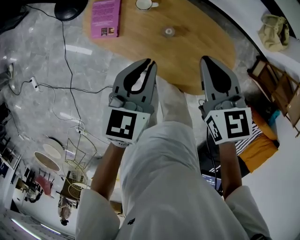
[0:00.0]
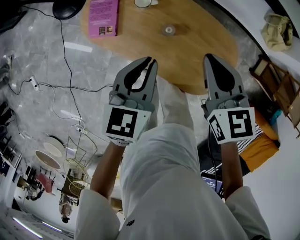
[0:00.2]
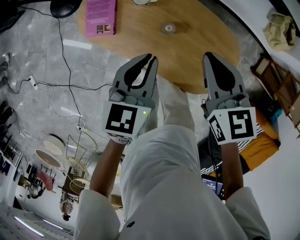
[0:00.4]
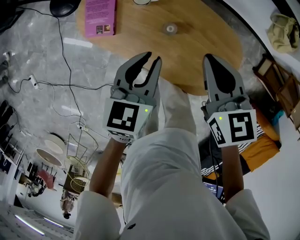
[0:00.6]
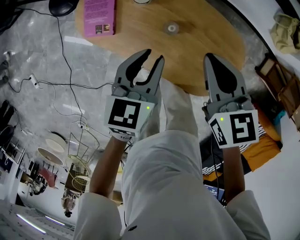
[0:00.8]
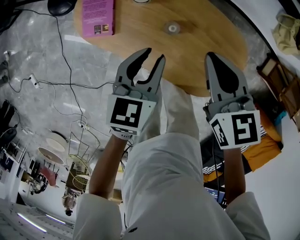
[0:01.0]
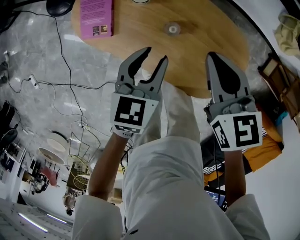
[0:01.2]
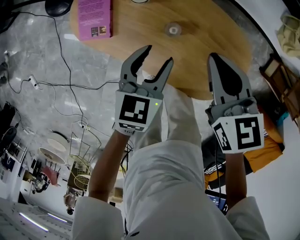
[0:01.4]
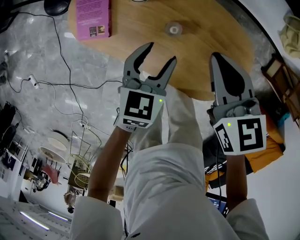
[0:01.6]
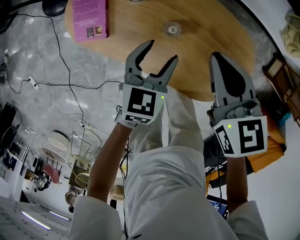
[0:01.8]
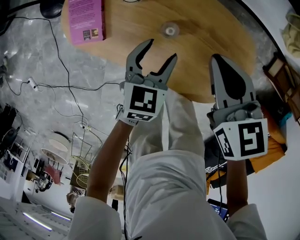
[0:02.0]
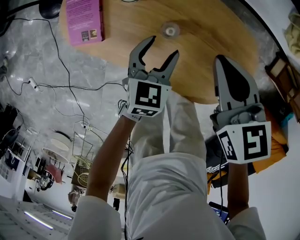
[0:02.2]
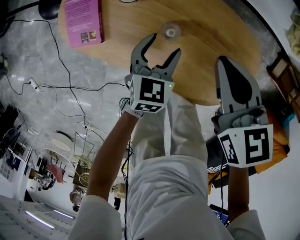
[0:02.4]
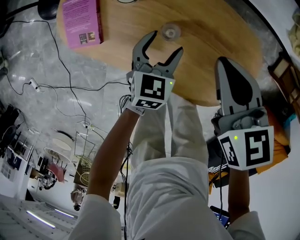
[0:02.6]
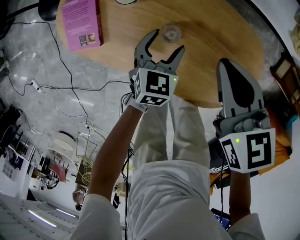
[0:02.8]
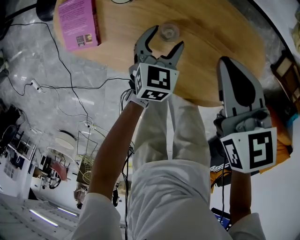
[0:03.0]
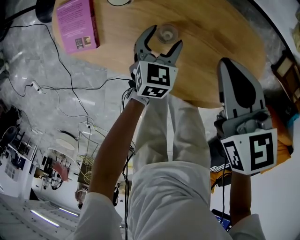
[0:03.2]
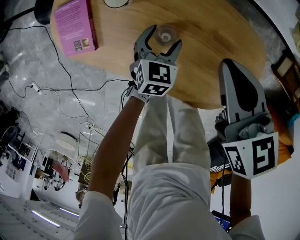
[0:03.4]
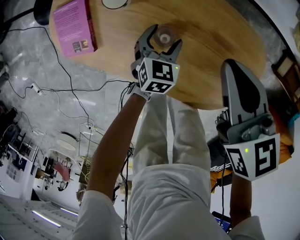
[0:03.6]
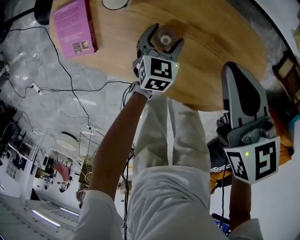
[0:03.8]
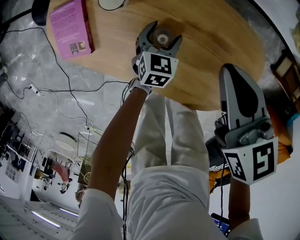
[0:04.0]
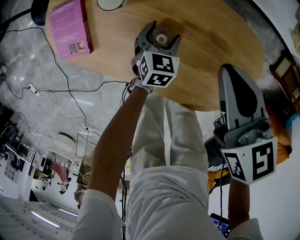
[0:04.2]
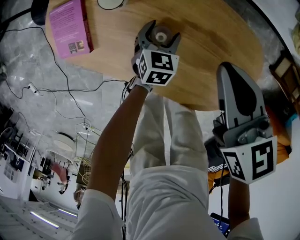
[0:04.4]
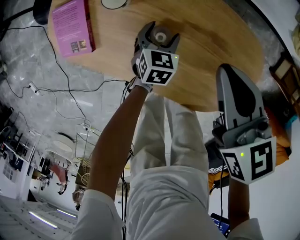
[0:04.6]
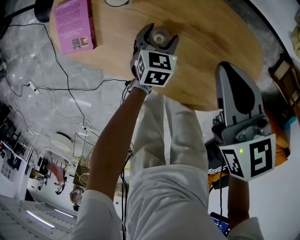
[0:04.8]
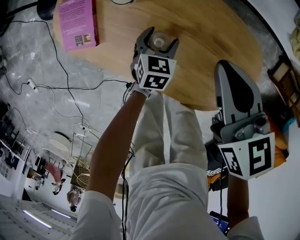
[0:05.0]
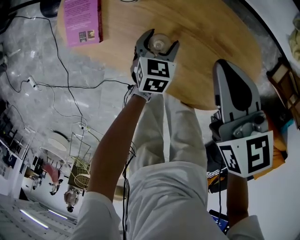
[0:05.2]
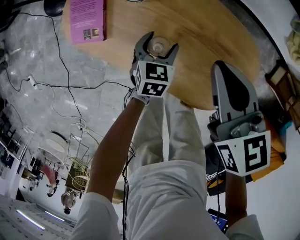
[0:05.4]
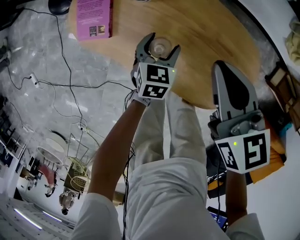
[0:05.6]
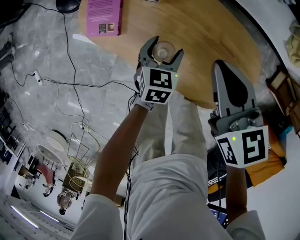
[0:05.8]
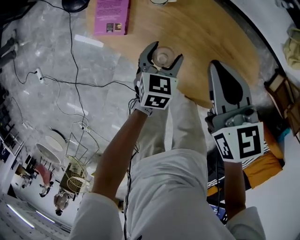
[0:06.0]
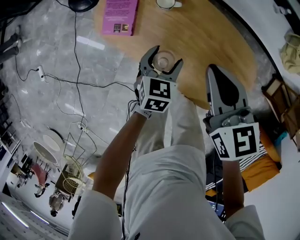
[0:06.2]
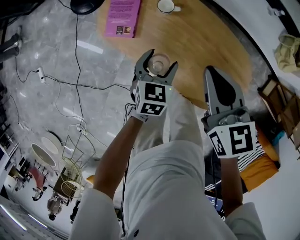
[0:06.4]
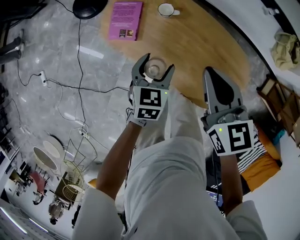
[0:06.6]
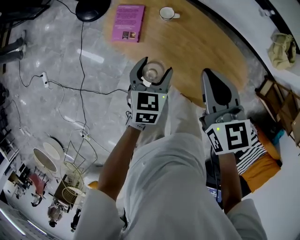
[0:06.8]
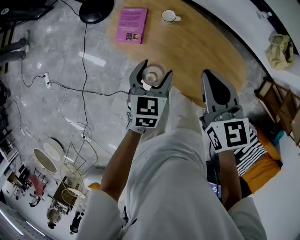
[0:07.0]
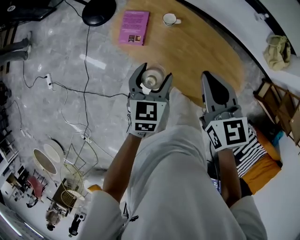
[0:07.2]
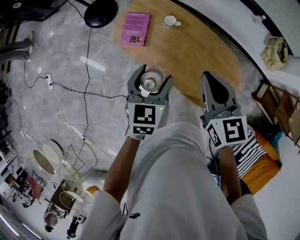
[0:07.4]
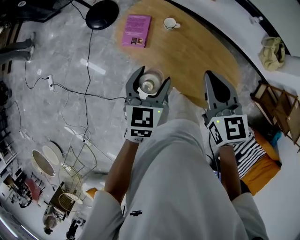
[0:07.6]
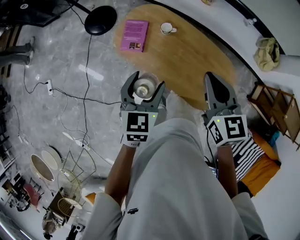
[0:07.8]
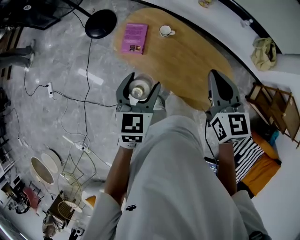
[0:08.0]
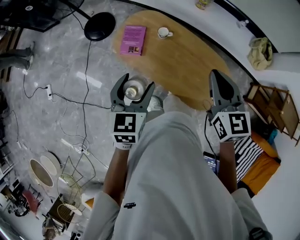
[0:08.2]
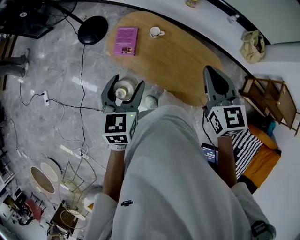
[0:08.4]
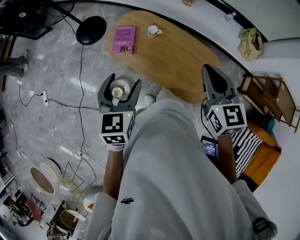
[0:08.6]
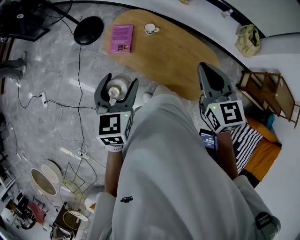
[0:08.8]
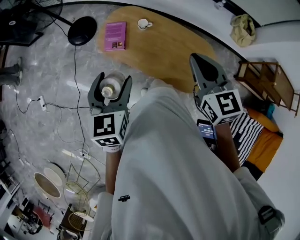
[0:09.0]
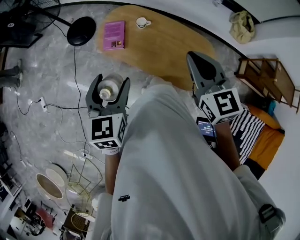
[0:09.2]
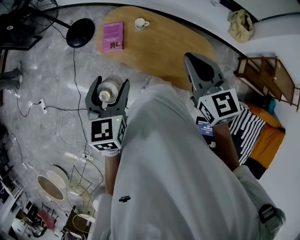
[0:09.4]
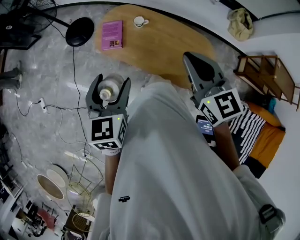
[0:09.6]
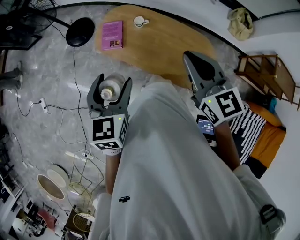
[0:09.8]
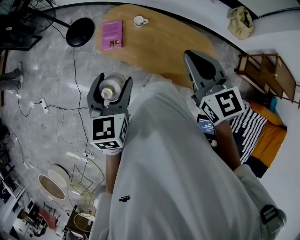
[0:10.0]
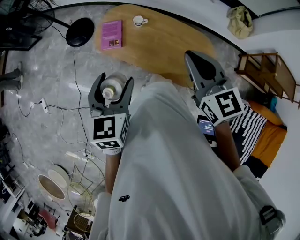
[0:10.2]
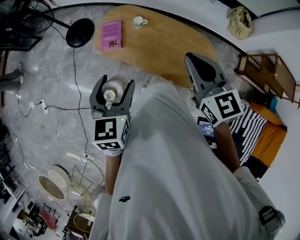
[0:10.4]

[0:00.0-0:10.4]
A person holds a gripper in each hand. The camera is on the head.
0:00.0 to 0:01.4: The right gripper moves downward, some 10 cm. Meanwhile the left gripper moves downward, roughly 15 cm, and opens up.
0:01.4 to 0:03.0: The left gripper goes approximately 15 cm downward. The right gripper goes approximately 5 cm downward.
0:03.0 to 0:04.4: The left gripper goes roughly 10 cm downward.
0:04.4 to 0:06.0: The grippers both shift upward, to the left and backward by approximately 15 cm.
0:06.0 to 0:07.4: The left gripper goes approximately 25 cm upward. Meanwhile the right gripper shifts about 15 cm upward and backward.
0:07.4 to 0:09.0: The right gripper goes roughly 10 cm upward and backward, while the left gripper moves upward, backward and to the left, some 20 cm.
0:09.0 to 0:10.4: The grippers move only a little.

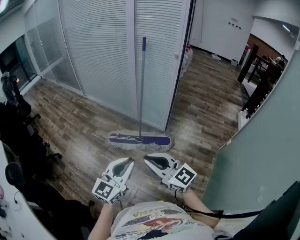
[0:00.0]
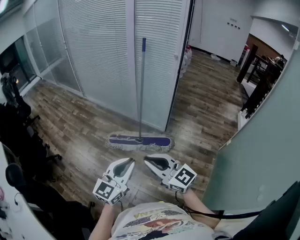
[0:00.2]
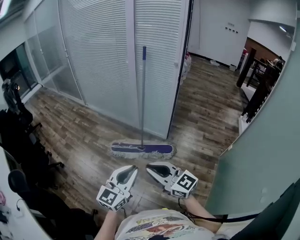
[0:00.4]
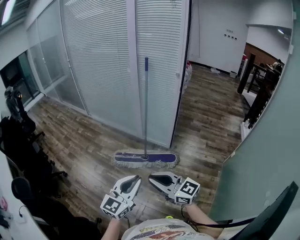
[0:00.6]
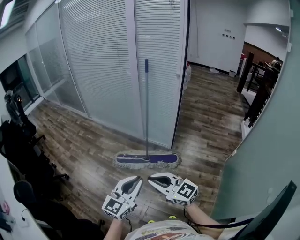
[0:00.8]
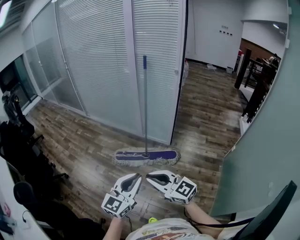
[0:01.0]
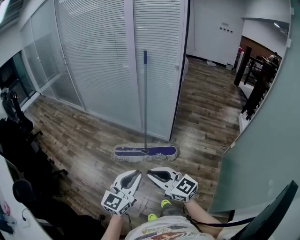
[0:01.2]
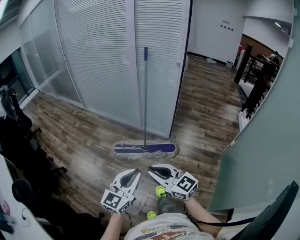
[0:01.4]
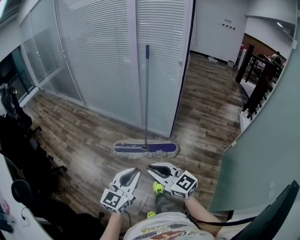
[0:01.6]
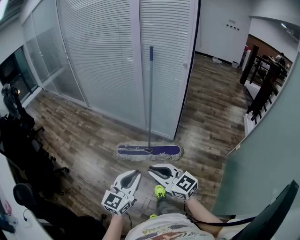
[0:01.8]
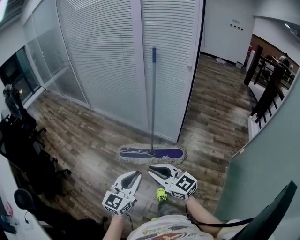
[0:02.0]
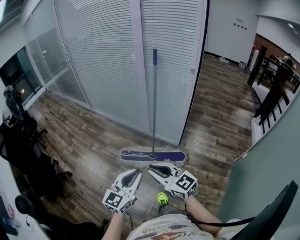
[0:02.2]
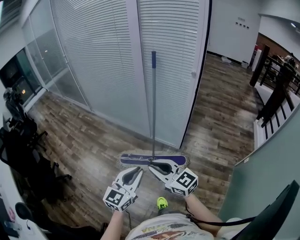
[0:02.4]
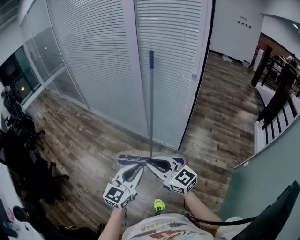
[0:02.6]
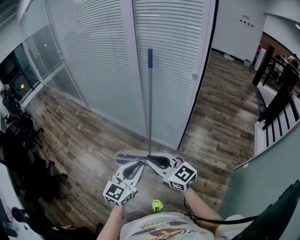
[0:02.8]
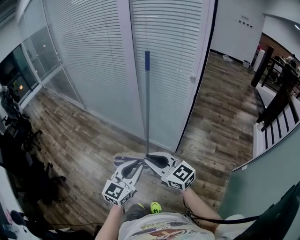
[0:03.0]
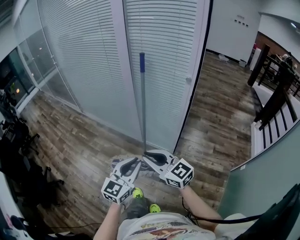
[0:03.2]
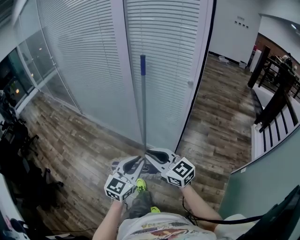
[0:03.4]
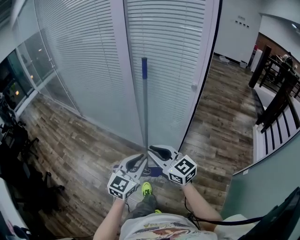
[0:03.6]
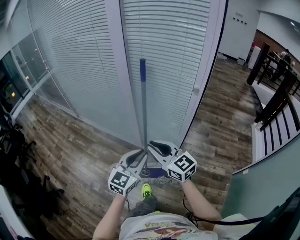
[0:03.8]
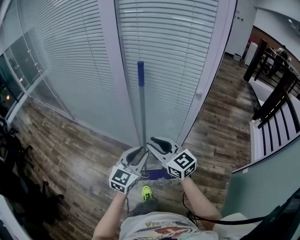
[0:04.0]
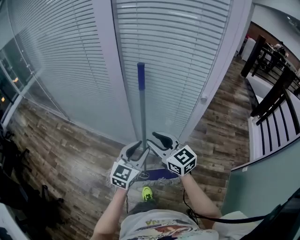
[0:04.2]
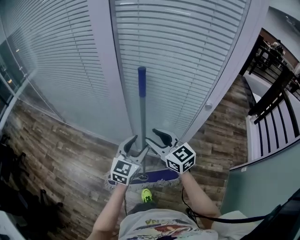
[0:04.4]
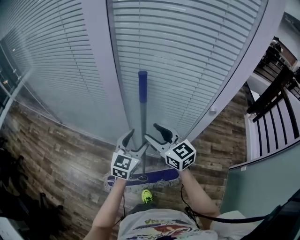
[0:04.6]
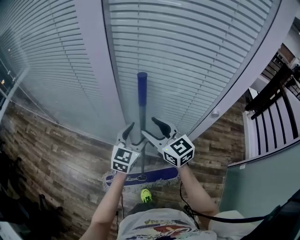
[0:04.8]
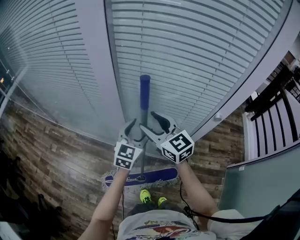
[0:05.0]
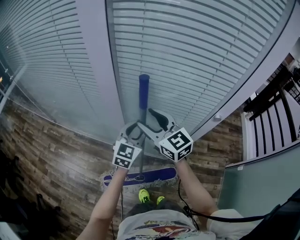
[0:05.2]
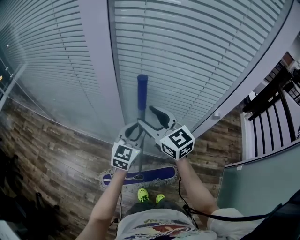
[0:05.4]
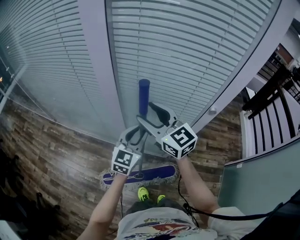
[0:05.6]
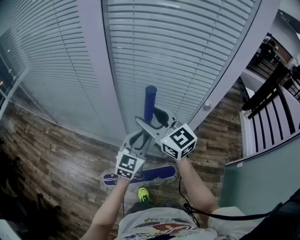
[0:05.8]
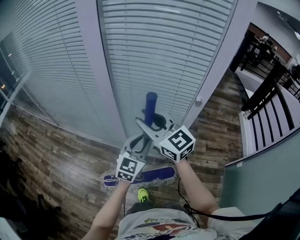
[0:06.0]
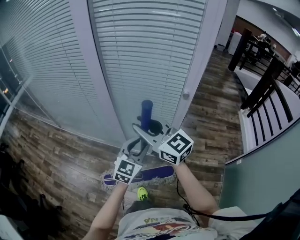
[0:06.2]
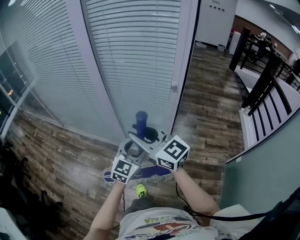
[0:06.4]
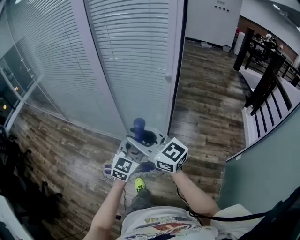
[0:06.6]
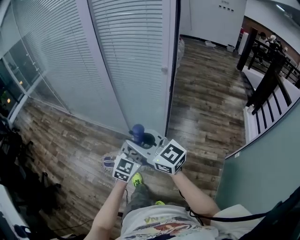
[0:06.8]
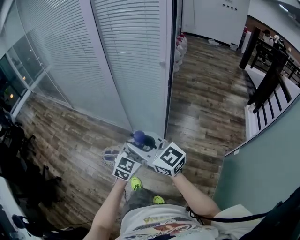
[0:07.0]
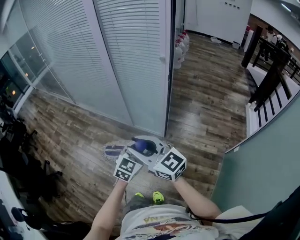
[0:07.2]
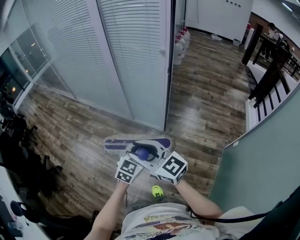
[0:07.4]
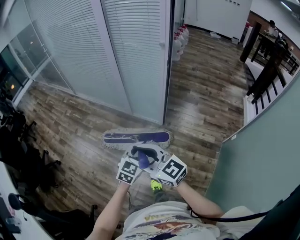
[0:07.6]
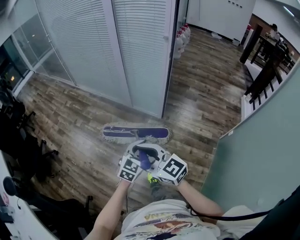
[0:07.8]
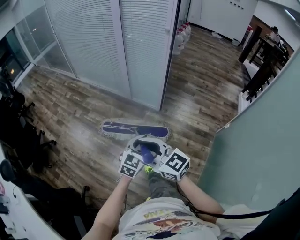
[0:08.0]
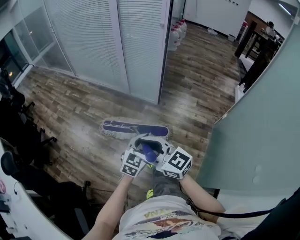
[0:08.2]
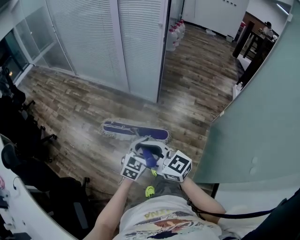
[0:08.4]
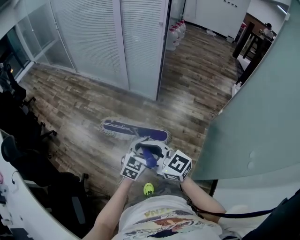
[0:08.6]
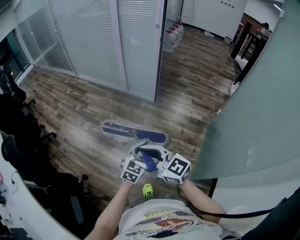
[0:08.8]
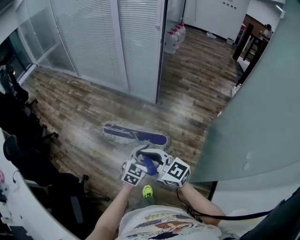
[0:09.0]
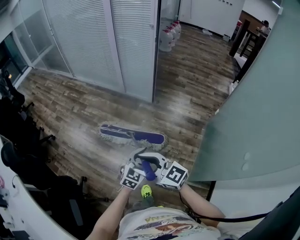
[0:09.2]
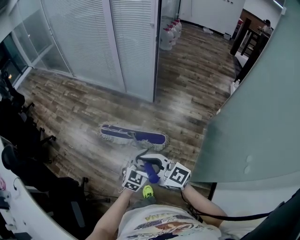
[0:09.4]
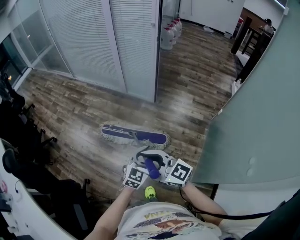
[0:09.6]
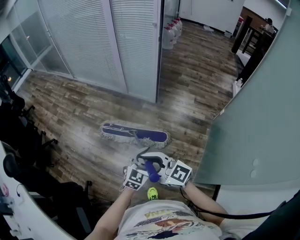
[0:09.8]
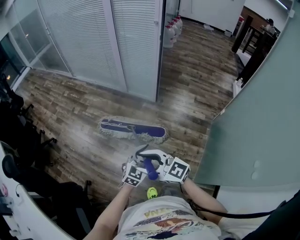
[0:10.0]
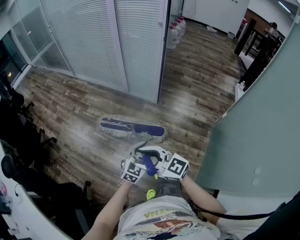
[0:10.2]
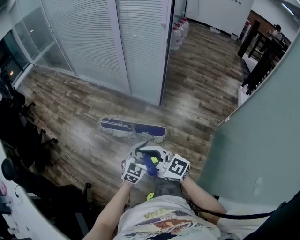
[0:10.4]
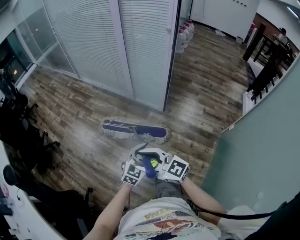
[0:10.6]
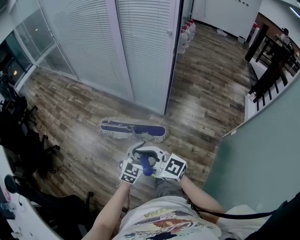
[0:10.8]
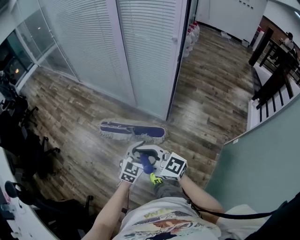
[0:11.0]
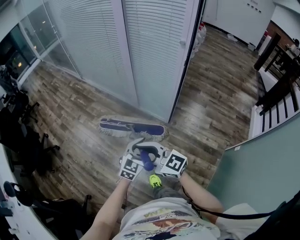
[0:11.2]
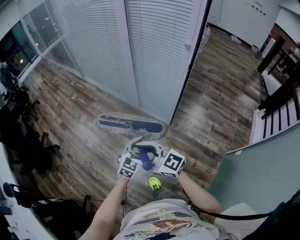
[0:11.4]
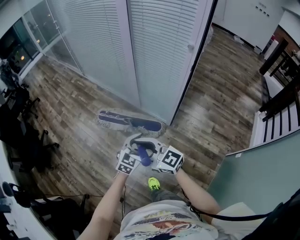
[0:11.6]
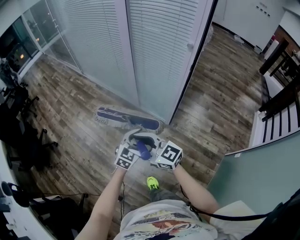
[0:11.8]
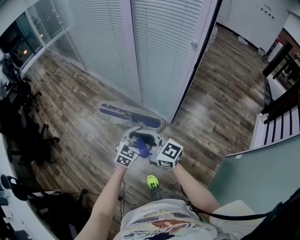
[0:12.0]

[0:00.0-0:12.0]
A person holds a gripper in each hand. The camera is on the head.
0:00.0 to 0:01.6: Both grippers move to the left, roughly 5 cm.
0:01.6 to 0:03.0: The left gripper is displaced forward and to the right by roughly 40 cm. The right gripper travels forward by some 40 cm.
0:03.0 to 0:04.4: The two grippers travel together, forward, some 40 cm. The left gripper opens up. The right gripper changes its angle by roughly 20 degrees, and opens its fingers.
0:04.4 to 0:06.0: The left gripper goes roughly 5 cm to the right, moves about 15 cm forward and comes back, and closes up; the right gripper moves upward, approximately 10 cm, and travels forward and back again, some 15 cm each way.
0:06.0 to 0:07.6: Both grippers are carried backward, approximately 60 cm. The left gripper opens, then closes once more. Meanwhile the right gripper turns by approximately 20 degrees.
0:07.6 to 0:09.0: The two grippers travel together, backward, about 40 cm.
0:09.0 to 0:10.4: Both grippers travel together forward, about 20 cm.
0:10.4 to 0:12.0: The two grippers travel together, forward, about 40 cm.

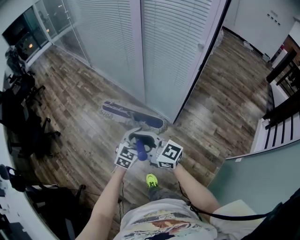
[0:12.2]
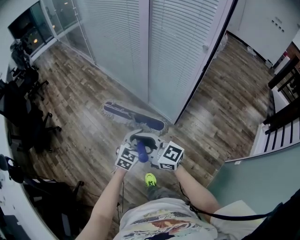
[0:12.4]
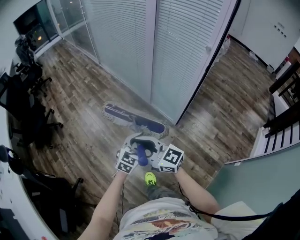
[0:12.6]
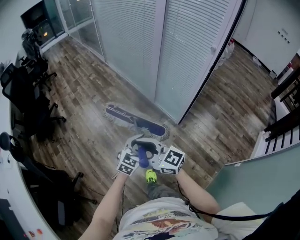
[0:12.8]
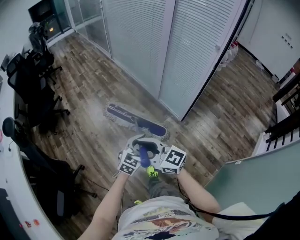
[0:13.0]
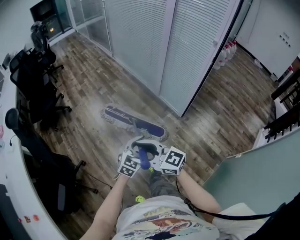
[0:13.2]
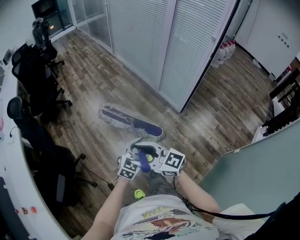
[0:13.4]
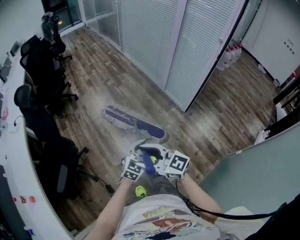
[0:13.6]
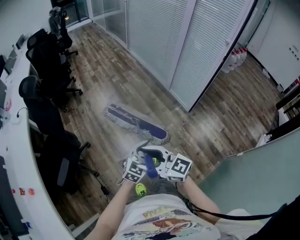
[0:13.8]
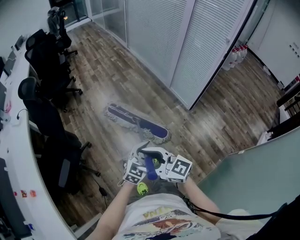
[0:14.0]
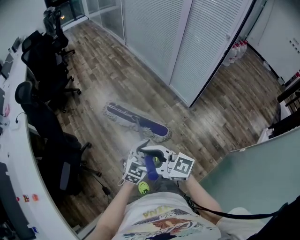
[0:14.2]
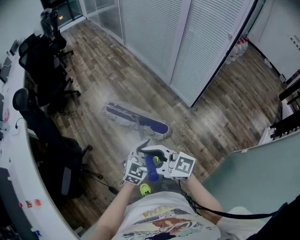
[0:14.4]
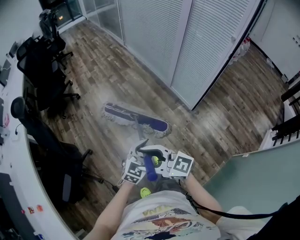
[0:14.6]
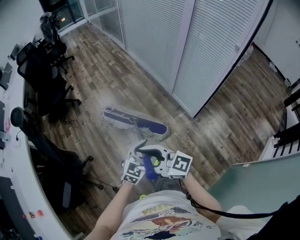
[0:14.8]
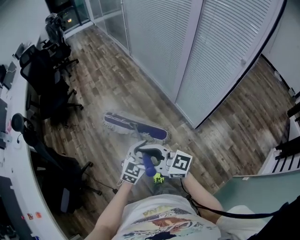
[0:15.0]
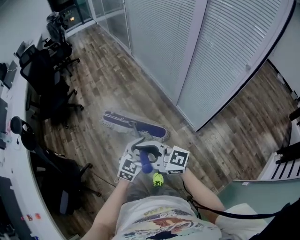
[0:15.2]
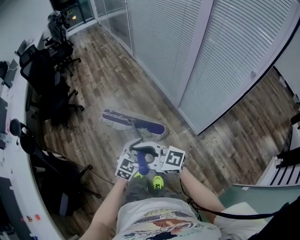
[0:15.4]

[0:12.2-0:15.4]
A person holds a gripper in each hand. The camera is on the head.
0:12.2 to 0:13.8: The pair of grippers is taken backward and to the left, approximately 50 cm.
0:13.8 to 0:15.4: The pair of grippers is taken forward and to the right, about 40 cm.
